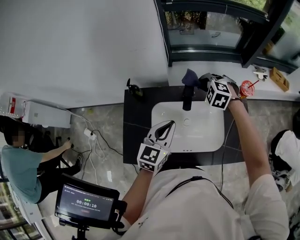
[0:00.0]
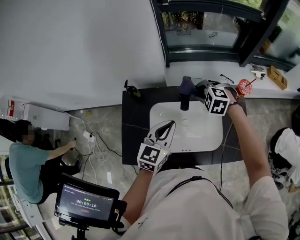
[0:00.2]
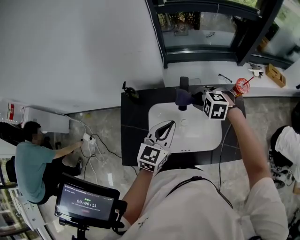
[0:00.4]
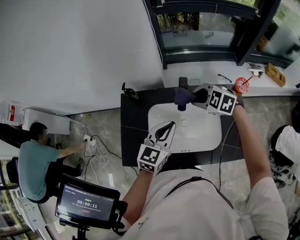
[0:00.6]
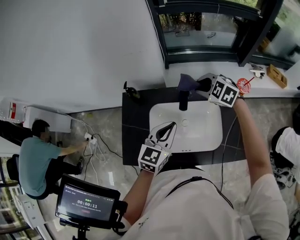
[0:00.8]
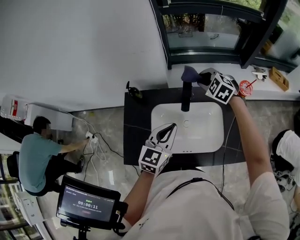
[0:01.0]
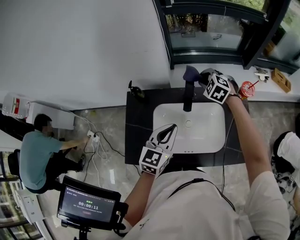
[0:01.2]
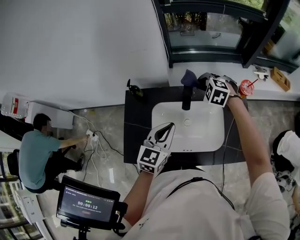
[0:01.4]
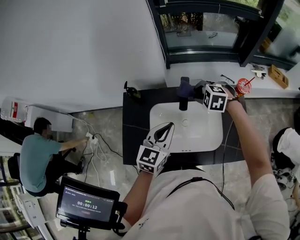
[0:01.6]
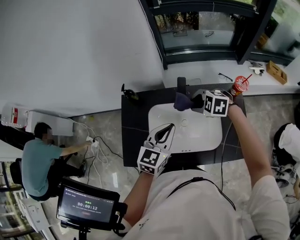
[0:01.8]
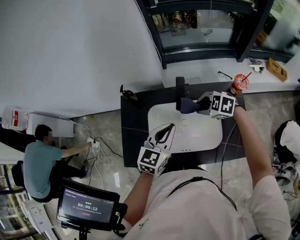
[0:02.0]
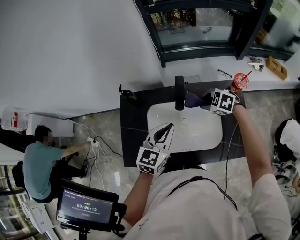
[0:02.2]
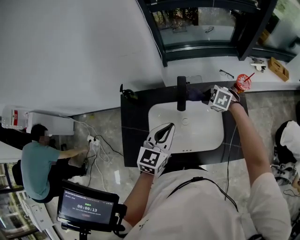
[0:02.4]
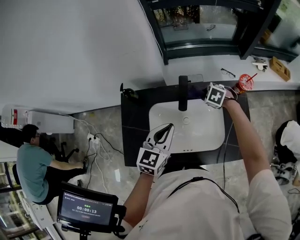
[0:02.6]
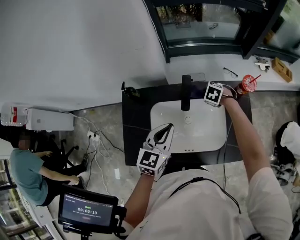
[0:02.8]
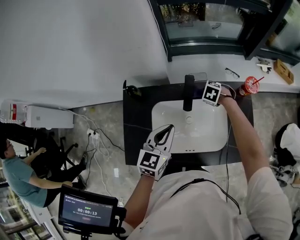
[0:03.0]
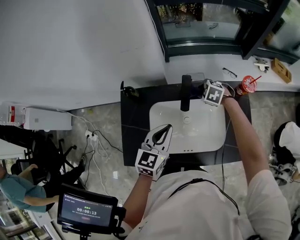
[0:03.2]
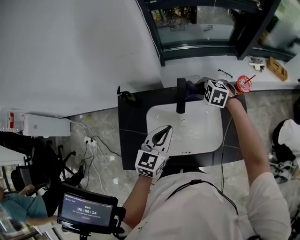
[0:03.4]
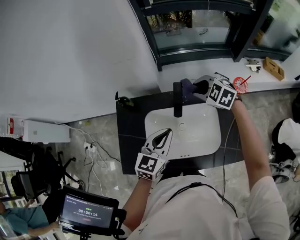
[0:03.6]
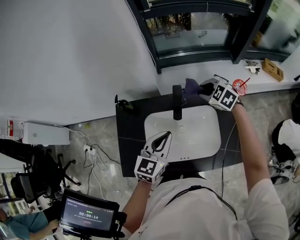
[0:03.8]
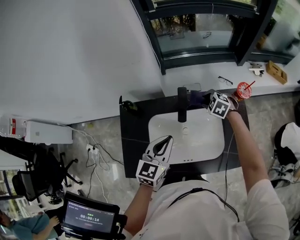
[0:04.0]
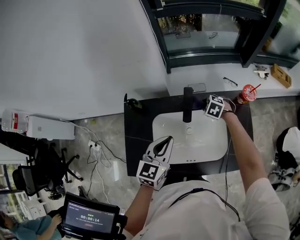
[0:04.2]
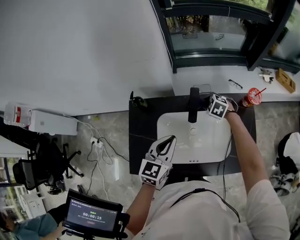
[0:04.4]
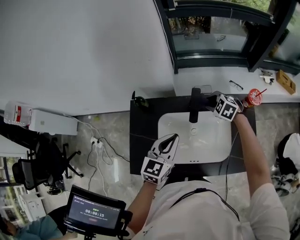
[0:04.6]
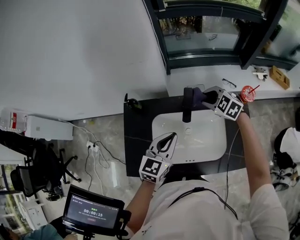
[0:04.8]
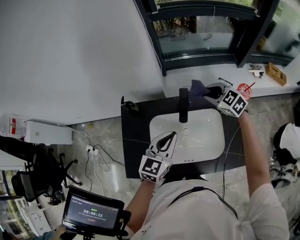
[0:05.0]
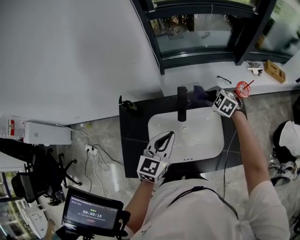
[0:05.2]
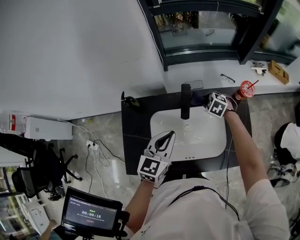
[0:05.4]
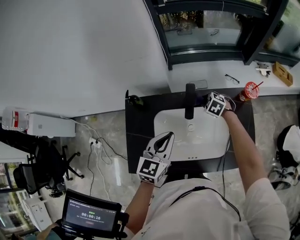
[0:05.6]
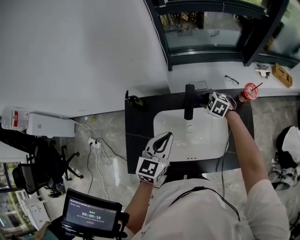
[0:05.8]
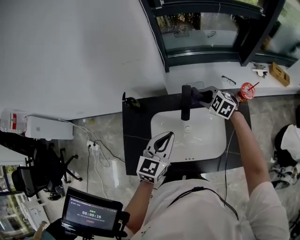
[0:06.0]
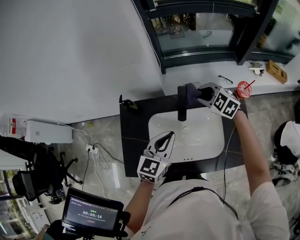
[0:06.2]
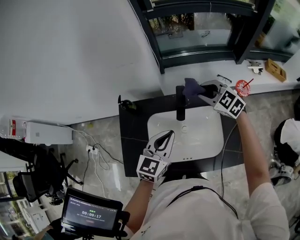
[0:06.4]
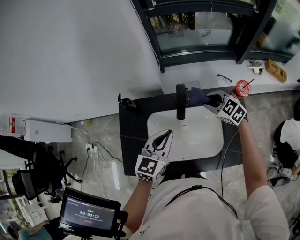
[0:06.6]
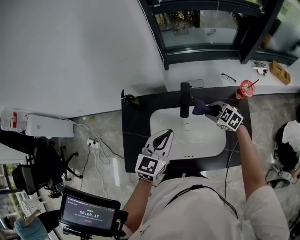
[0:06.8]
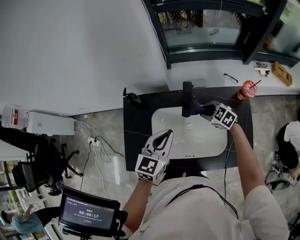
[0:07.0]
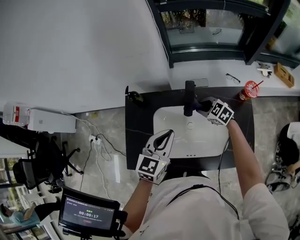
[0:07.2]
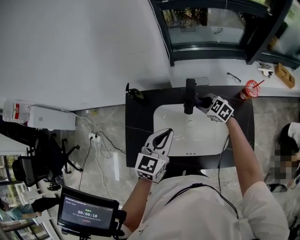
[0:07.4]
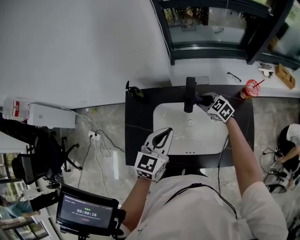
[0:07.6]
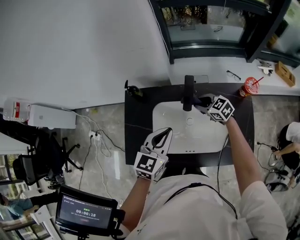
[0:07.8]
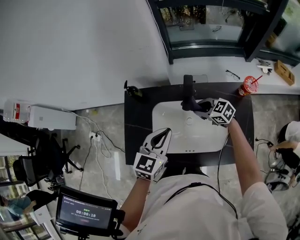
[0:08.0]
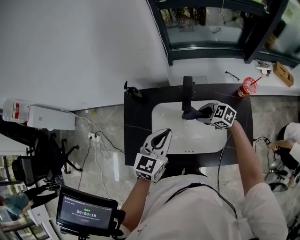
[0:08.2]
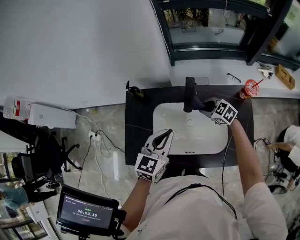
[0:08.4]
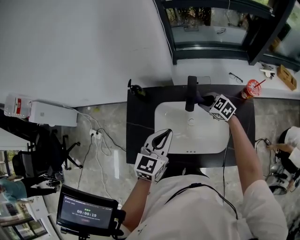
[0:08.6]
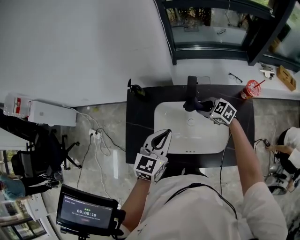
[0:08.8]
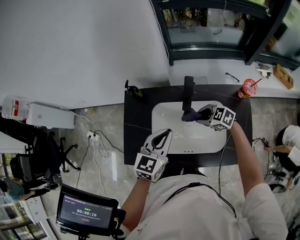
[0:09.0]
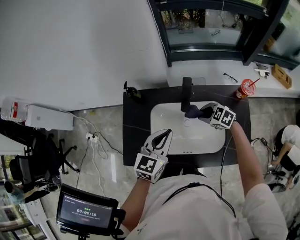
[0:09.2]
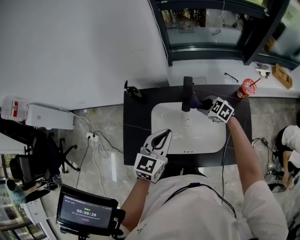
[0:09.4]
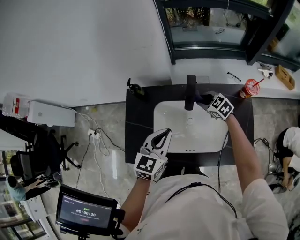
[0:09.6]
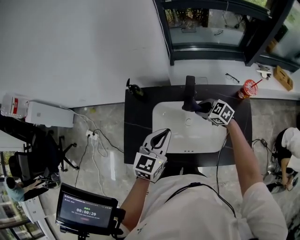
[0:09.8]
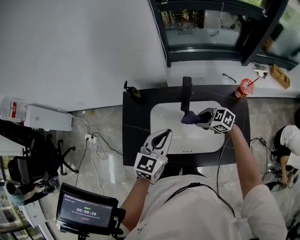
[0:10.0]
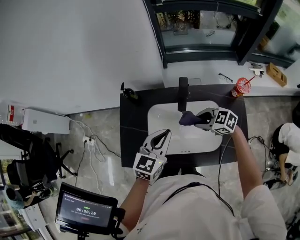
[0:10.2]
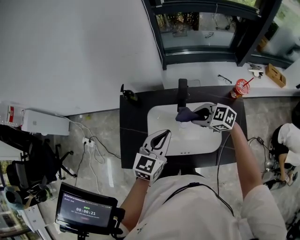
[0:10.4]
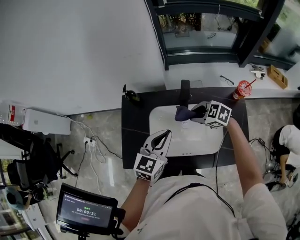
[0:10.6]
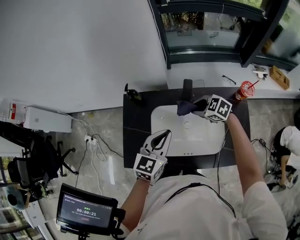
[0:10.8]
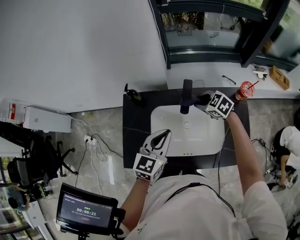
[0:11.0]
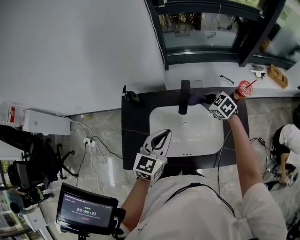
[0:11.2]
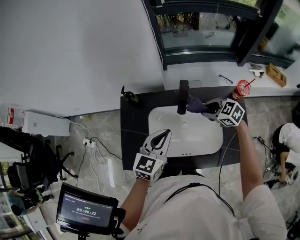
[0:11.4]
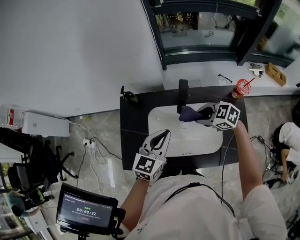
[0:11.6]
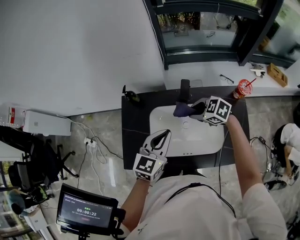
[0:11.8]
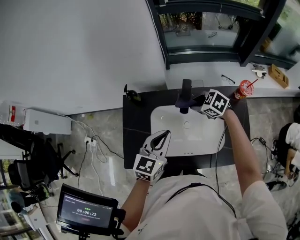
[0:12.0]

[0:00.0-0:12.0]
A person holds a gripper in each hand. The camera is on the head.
0:00.0 to 0:01.6: The right gripper swings forward and backward, approximately 10 cm each way, with 2 reversals.
0:01.6 to 0:03.0: The right gripper heads downward, covering about 15 cm, and turns by roughly 20 degrees.
0:03.0 to 0:04.4: The right gripper goes upward and returns, about 15 cm each way.
0:04.4 to 0:06.0: The right gripper moves up and down over some 15 cm, changing direction 2 times.
0:06.0 to 0:07.6: The right gripper goes about 5 cm downward.
0:07.6 to 0:09.0: The right gripper moves forward and backward over approximately 10 cm, changing direction 2 times, and rotates about 20 degrees.
0:09.0 to 0:10.4: The right gripper shifts roughly 5 cm upward, and moves approximately 10 cm forward and comes back.
0:10.4 to 0:12.0: The right gripper shifts some 5 cm forward, and reaches about 10 cm to the right, then returns.

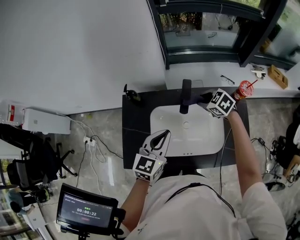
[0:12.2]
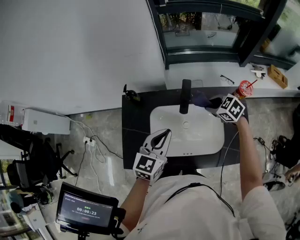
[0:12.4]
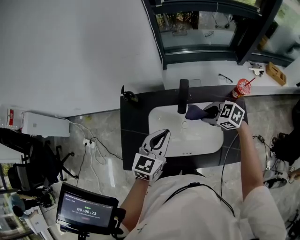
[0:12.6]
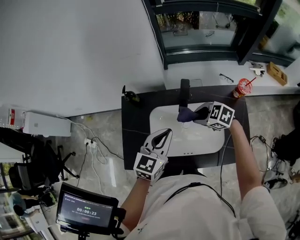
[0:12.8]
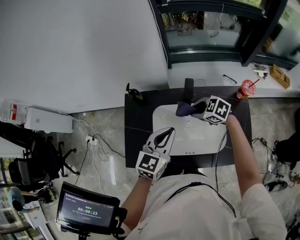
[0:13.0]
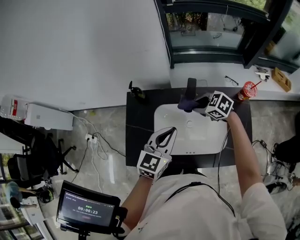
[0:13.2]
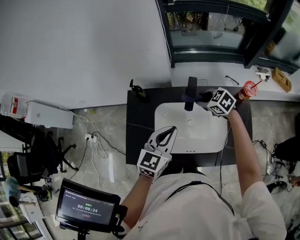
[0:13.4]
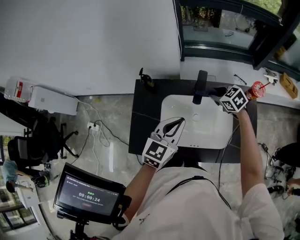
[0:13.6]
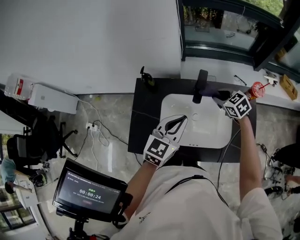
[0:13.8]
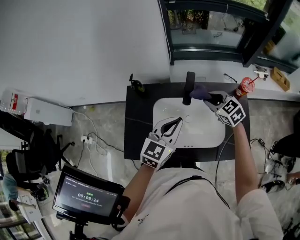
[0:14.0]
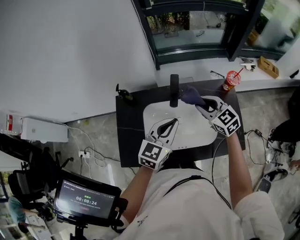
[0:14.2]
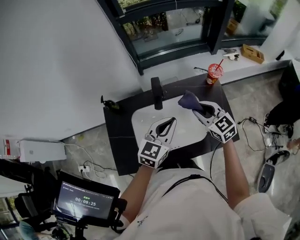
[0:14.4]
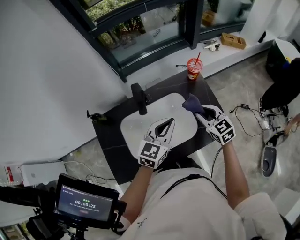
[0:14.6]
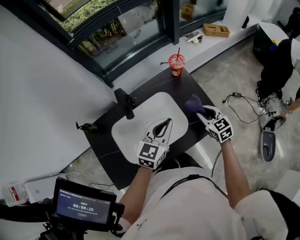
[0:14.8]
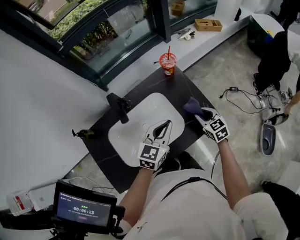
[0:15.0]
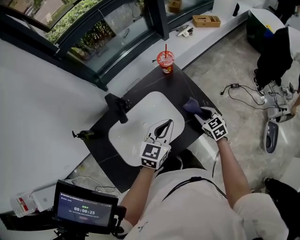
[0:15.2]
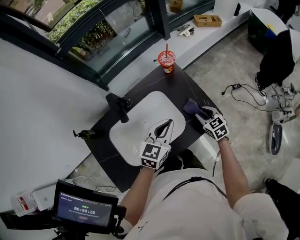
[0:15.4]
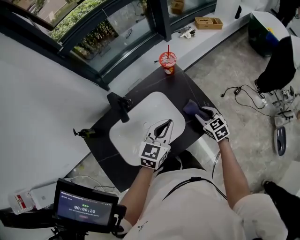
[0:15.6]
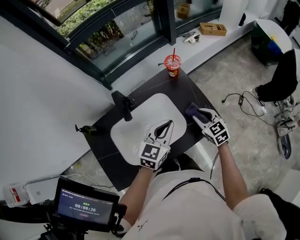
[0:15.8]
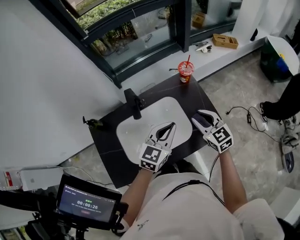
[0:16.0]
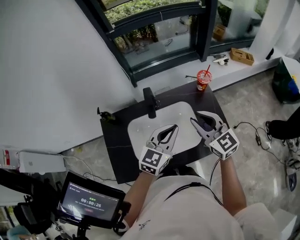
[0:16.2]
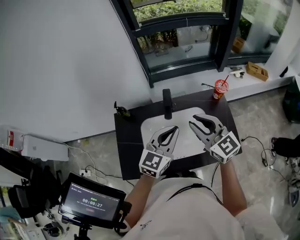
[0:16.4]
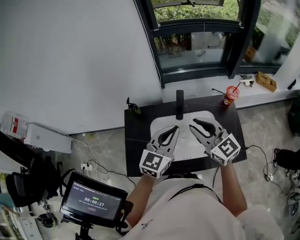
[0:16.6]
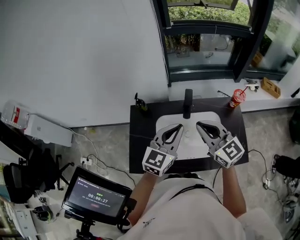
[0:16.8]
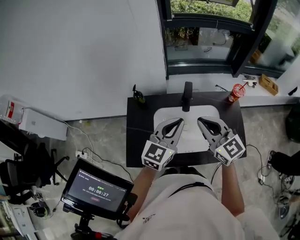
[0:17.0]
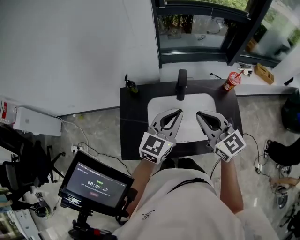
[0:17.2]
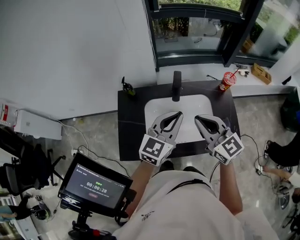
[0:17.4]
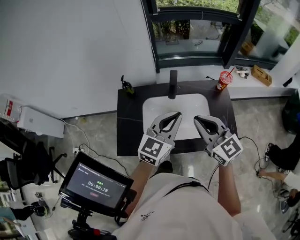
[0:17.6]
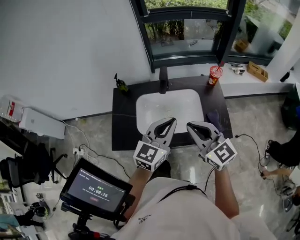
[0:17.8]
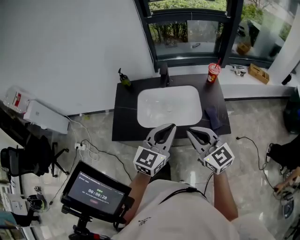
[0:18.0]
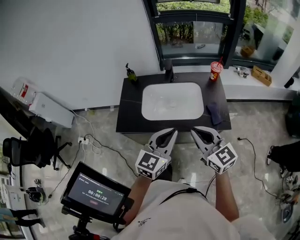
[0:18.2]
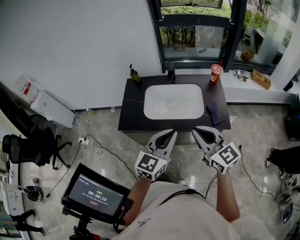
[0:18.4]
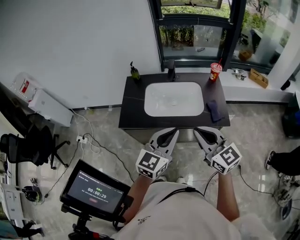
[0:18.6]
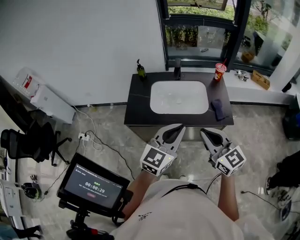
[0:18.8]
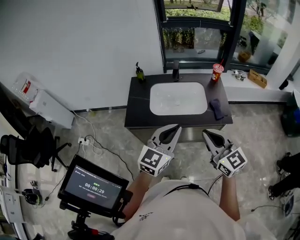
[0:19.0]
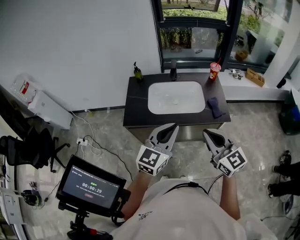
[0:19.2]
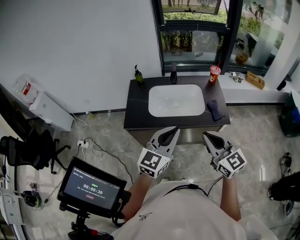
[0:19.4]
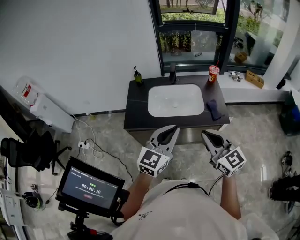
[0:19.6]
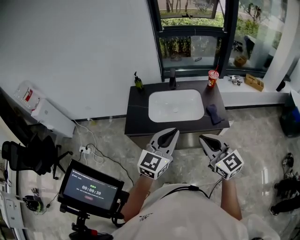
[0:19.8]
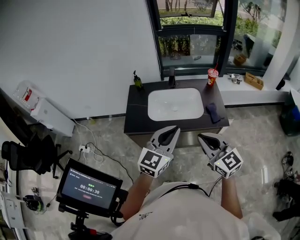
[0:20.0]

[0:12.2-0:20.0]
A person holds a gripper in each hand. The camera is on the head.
0:12.2 to 0:13.8: The right gripper travels to the left and back again, roughly 5 cm each way.
0:13.8 to 0:15.4: The left gripper changes place by about 25 cm, and changes its angle by roughly 30 degrees. The right gripper shifts by about 35 cm, and rotates about 50 degrees.
0:15.4 to 0:16.8: The left gripper ends up some 25 cm from where it was, and swivels some 30 degrees. Meanwhile the right gripper ends up about 40 cm from where it was, tips its fingers upward by roughly 30 degrees, and closes.
0:16.8 to 0:18.4: The two grippers go roughly 30 cm backward.
0:18.4 to 0:20.0: The left gripper goes roughly 5 cm upward. The right gripper heads backward, covering roughly 5 cm.

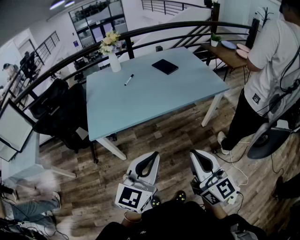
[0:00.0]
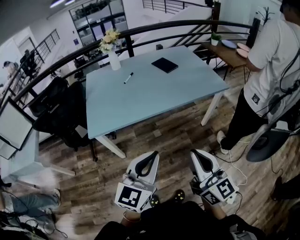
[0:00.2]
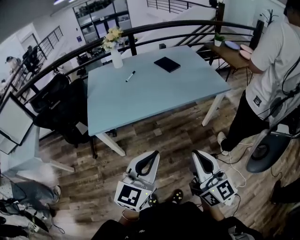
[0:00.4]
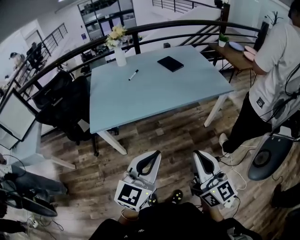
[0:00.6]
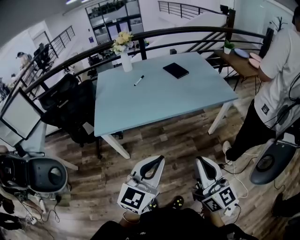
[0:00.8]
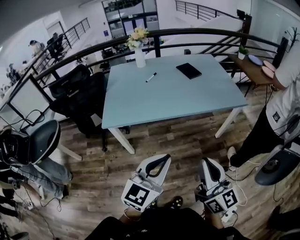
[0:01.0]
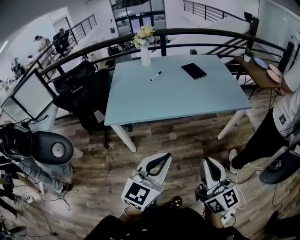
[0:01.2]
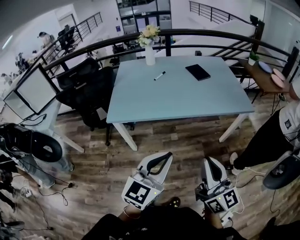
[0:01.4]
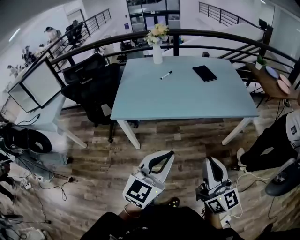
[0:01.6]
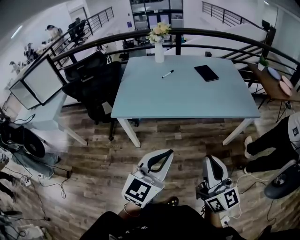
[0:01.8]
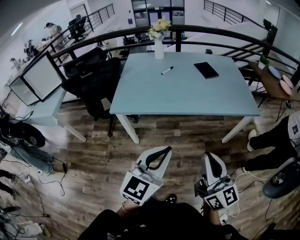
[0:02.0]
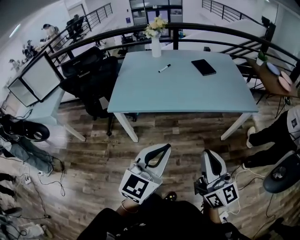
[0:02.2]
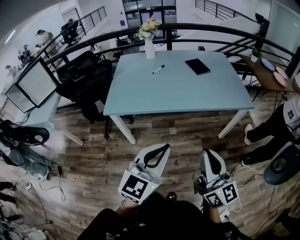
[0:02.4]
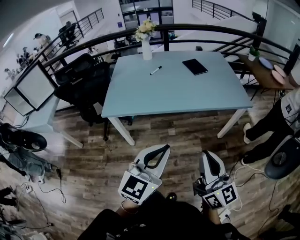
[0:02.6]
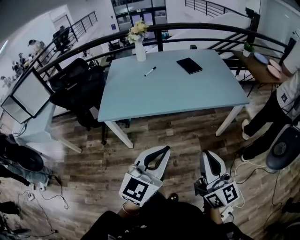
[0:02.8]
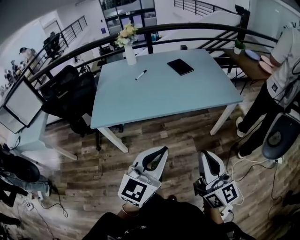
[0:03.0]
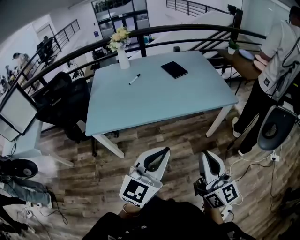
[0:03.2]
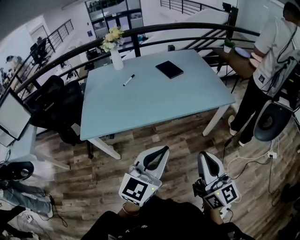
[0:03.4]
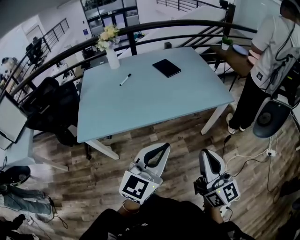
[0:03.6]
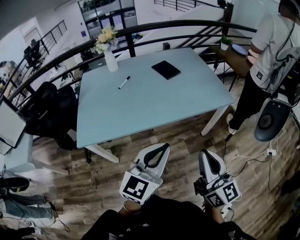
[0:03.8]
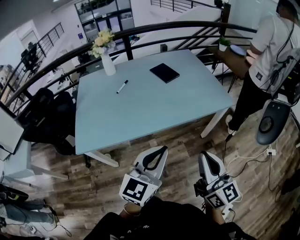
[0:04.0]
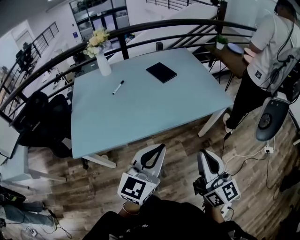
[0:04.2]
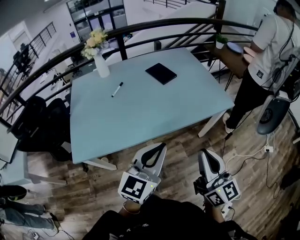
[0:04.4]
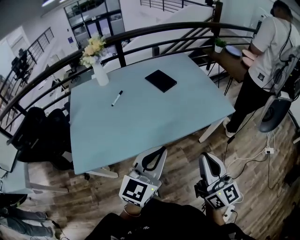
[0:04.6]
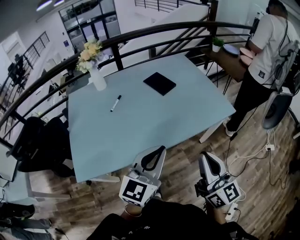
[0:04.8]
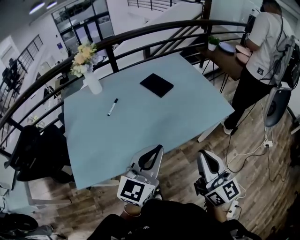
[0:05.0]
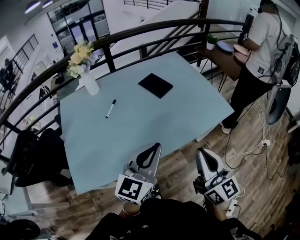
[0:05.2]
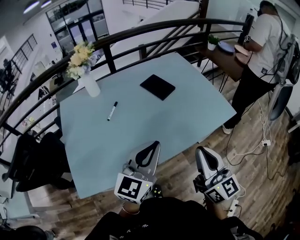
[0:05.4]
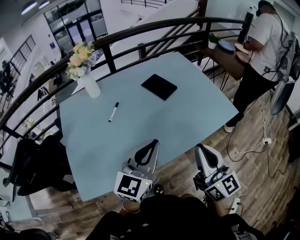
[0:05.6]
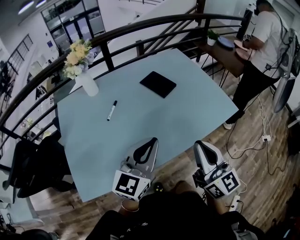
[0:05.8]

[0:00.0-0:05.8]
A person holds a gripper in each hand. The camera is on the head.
0:00.0 to 0:01.4: The grippers stay close to where they were, moving slightly.
0:01.4 to 0:02.8: Both grippers travel together to the right, roughly 5 cm.
0:02.8 to 0:04.4: The grippers both shift forward by some 20 cm.
0:04.4 to 0:05.8: The two grippers go roughly 20 cm forward and to the left.
